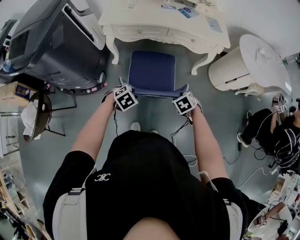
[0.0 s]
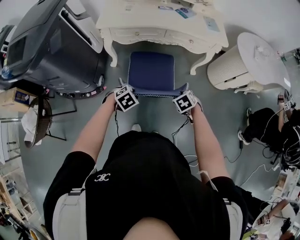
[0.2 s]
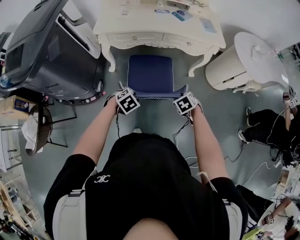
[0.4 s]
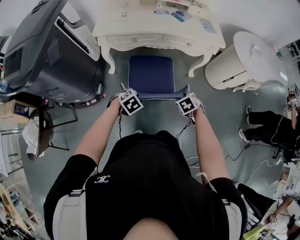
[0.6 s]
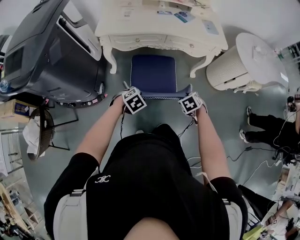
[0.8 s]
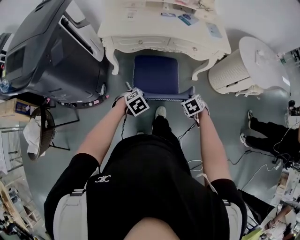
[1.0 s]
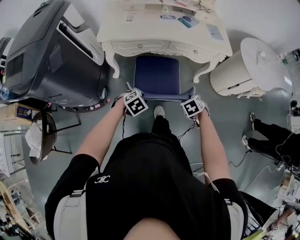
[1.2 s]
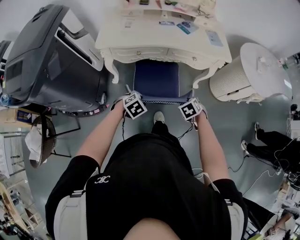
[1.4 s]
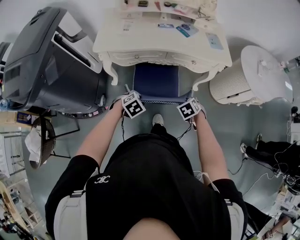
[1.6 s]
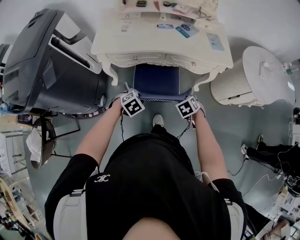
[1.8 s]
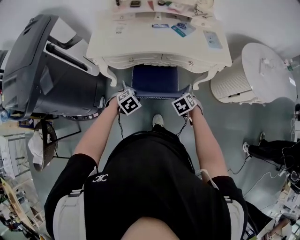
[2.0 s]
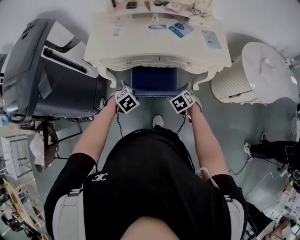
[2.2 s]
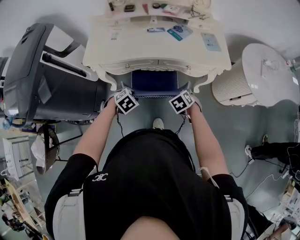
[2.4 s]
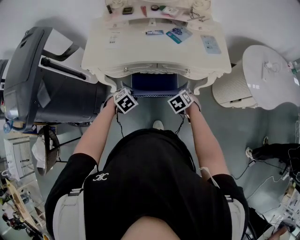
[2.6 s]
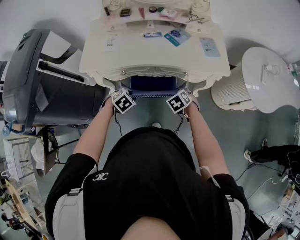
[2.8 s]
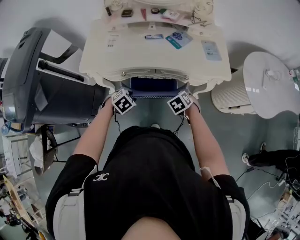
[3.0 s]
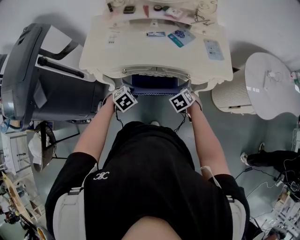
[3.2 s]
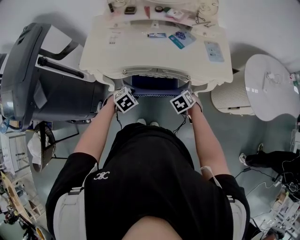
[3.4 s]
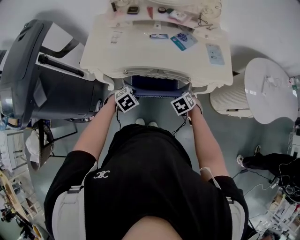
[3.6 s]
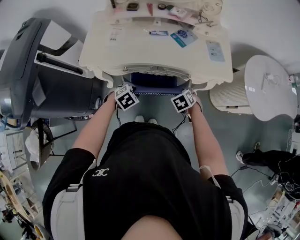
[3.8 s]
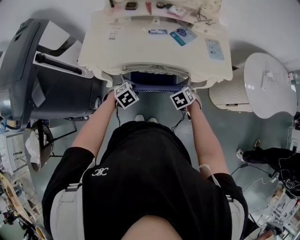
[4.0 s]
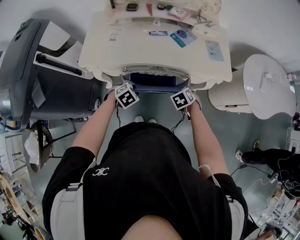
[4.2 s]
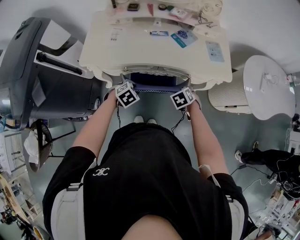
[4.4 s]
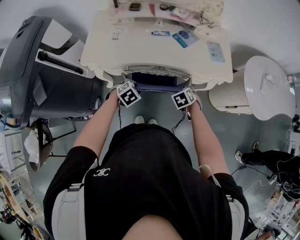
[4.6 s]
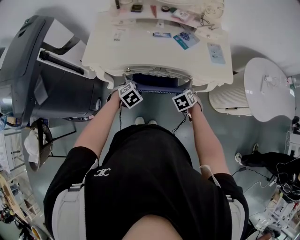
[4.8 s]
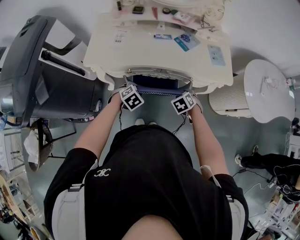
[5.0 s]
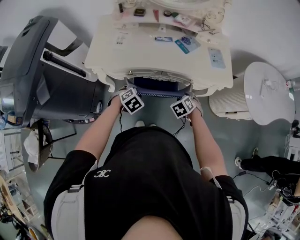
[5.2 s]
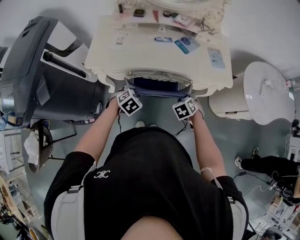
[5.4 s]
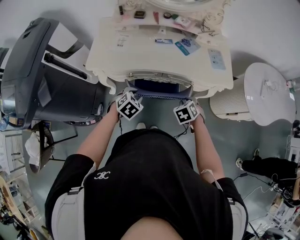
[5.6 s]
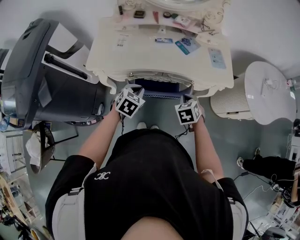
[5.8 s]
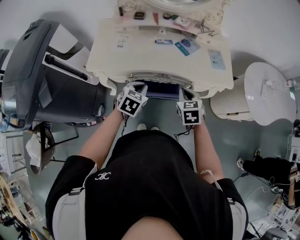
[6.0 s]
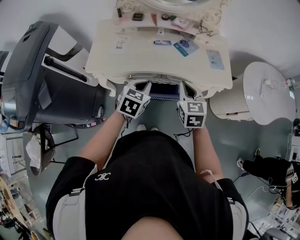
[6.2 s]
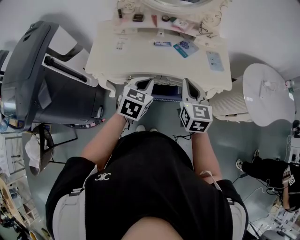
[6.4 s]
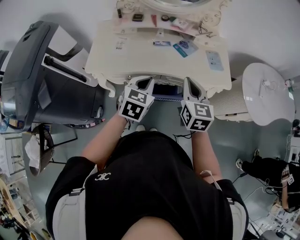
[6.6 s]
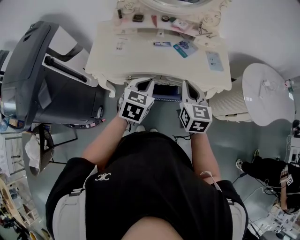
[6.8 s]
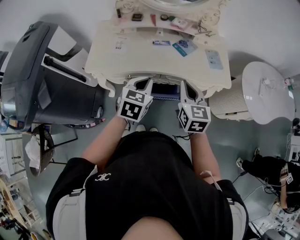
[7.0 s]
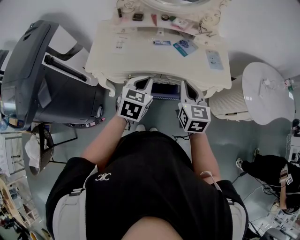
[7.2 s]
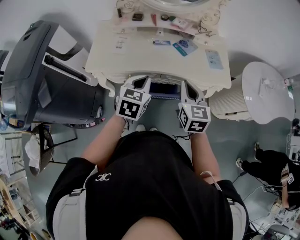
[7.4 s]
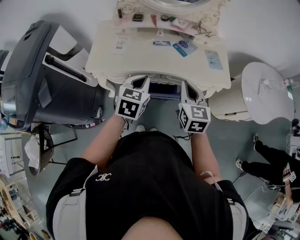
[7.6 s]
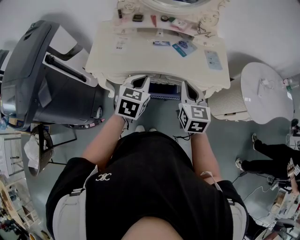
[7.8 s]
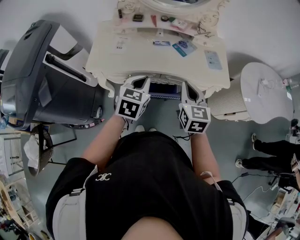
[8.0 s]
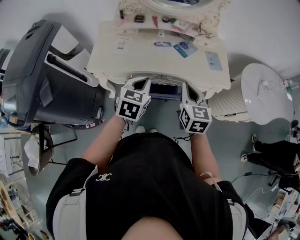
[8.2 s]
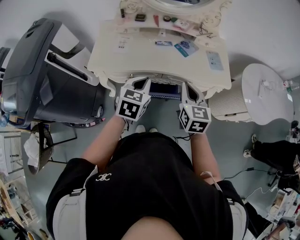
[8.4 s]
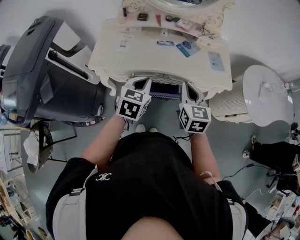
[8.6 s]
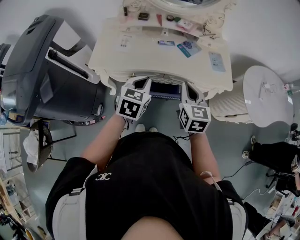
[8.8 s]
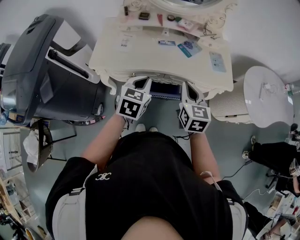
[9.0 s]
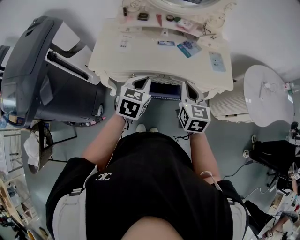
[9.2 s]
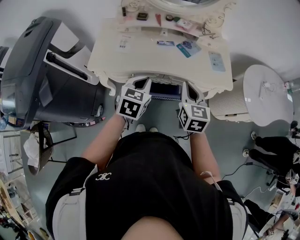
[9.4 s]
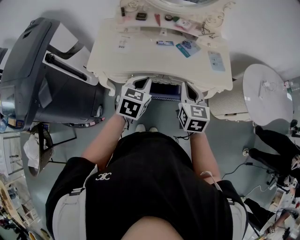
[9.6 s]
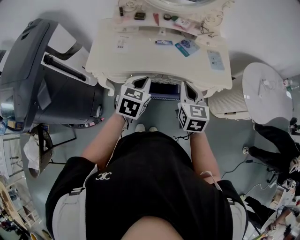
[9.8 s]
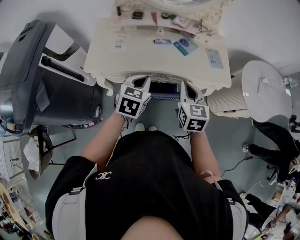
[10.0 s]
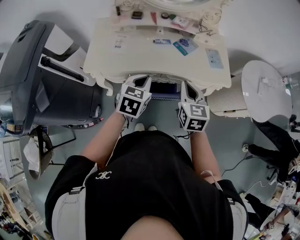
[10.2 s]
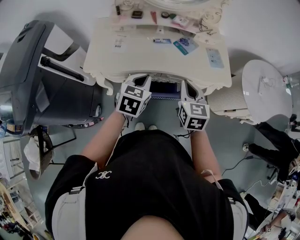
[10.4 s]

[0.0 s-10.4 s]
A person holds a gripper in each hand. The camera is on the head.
0.0 to 1.4 s: Both grippers travel together forward, some 10 cm.
1.4 to 3.0 s: Both grippers move forward, roughly 20 cm.
3.0 to 4.4 s: The grippers make only small movements.
4.4 to 6.0 s: Both grippers move upward, roughly 15 cm. The left gripper turns by roughly 30 degrees, and closes up. The right gripper rotates roughly 30 degrees, and closes up.
6.0 to 7.4 s: The two grippers go some 10 cm upward. The right gripper rotates roughly 20 degrees.
7.4 to 10.4 s: The grippers stay close to where they were, moving slightly.

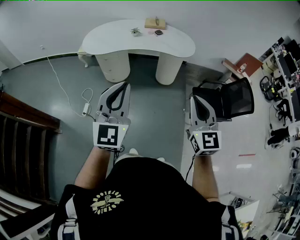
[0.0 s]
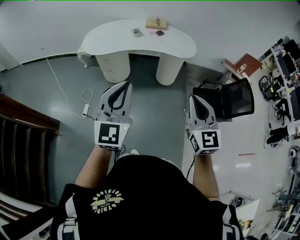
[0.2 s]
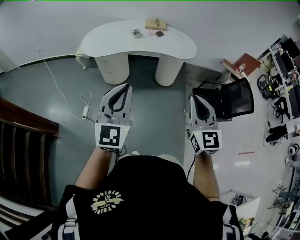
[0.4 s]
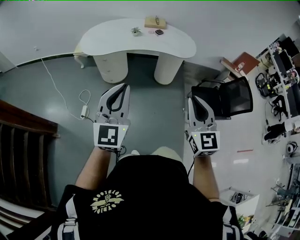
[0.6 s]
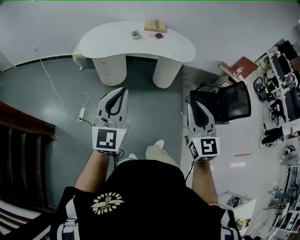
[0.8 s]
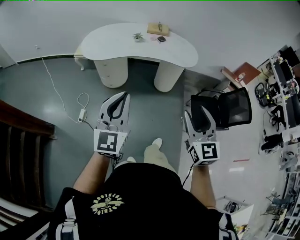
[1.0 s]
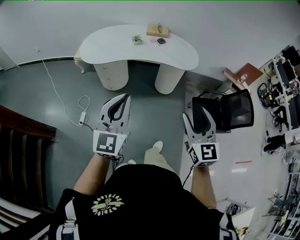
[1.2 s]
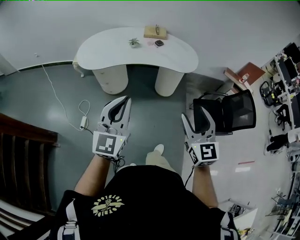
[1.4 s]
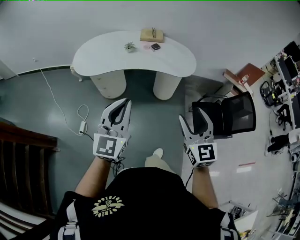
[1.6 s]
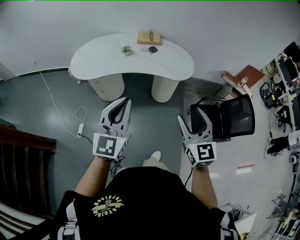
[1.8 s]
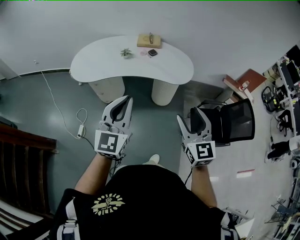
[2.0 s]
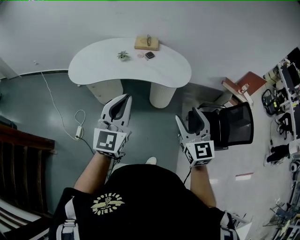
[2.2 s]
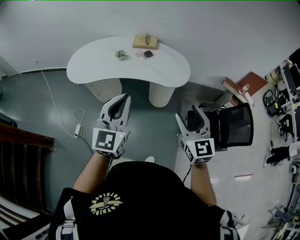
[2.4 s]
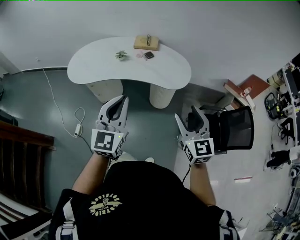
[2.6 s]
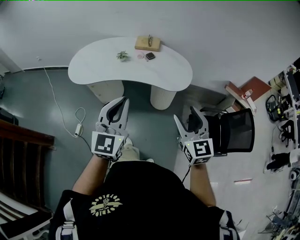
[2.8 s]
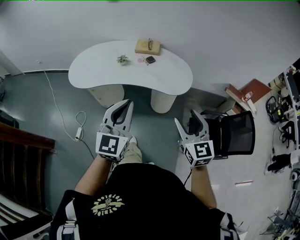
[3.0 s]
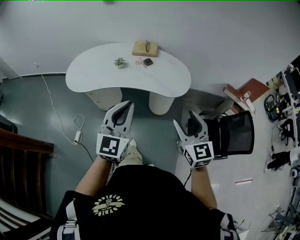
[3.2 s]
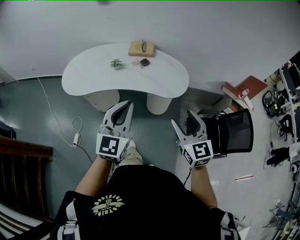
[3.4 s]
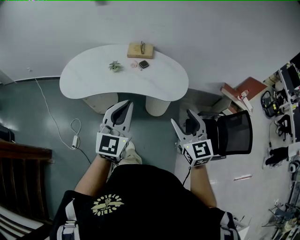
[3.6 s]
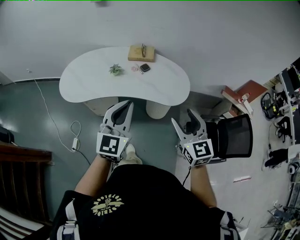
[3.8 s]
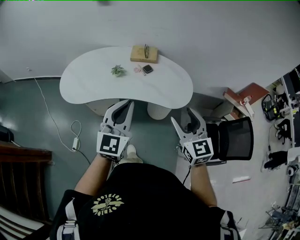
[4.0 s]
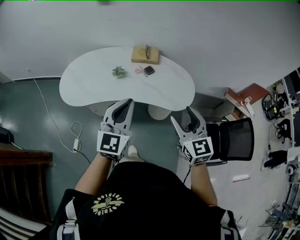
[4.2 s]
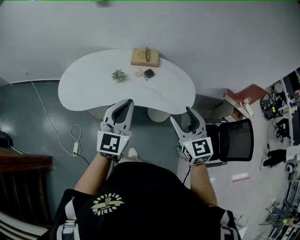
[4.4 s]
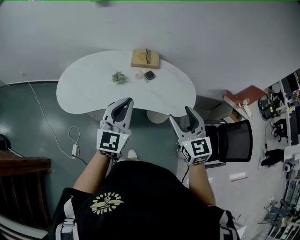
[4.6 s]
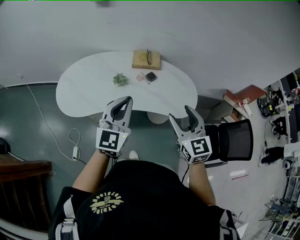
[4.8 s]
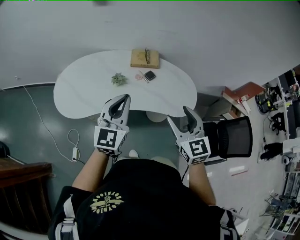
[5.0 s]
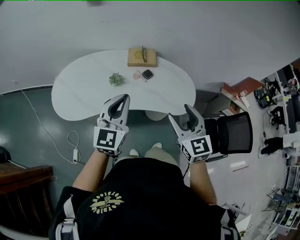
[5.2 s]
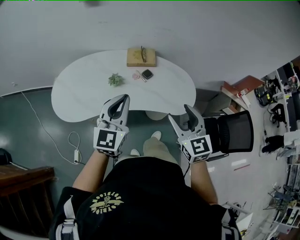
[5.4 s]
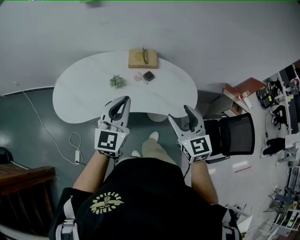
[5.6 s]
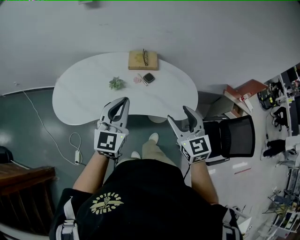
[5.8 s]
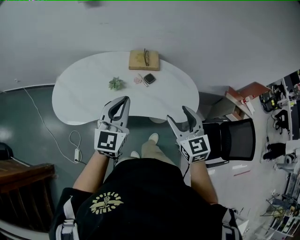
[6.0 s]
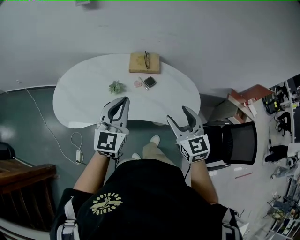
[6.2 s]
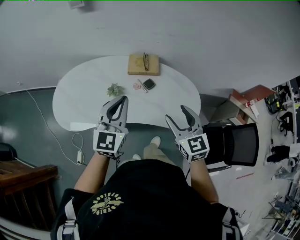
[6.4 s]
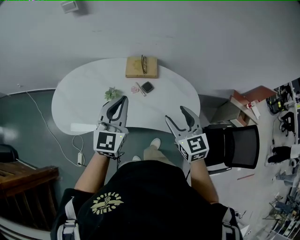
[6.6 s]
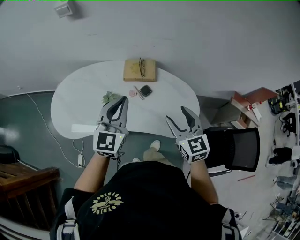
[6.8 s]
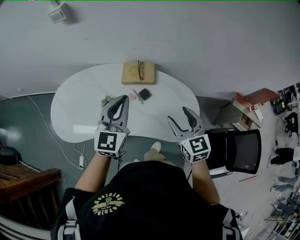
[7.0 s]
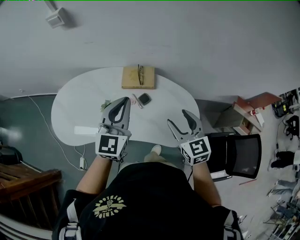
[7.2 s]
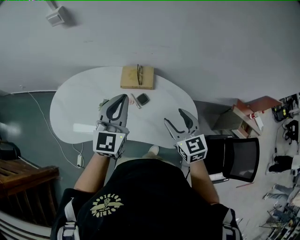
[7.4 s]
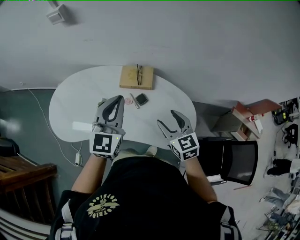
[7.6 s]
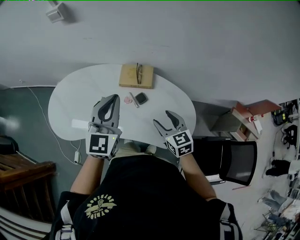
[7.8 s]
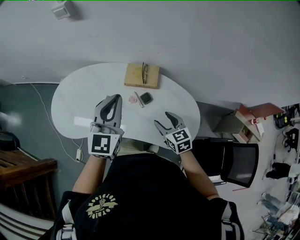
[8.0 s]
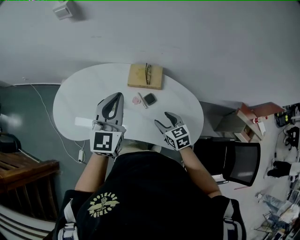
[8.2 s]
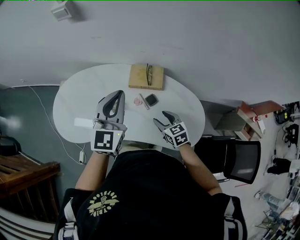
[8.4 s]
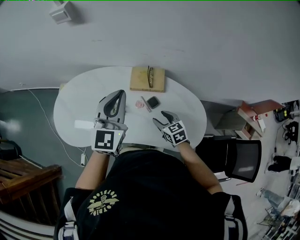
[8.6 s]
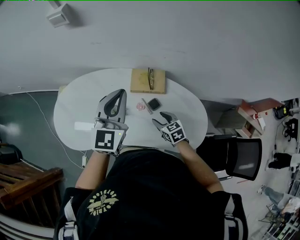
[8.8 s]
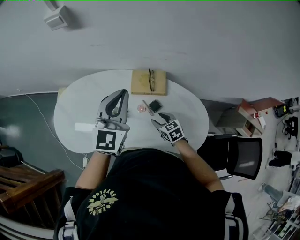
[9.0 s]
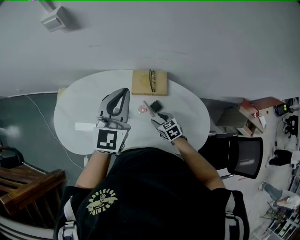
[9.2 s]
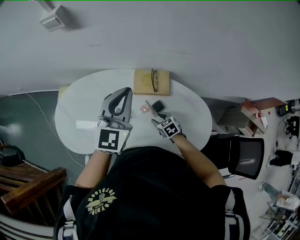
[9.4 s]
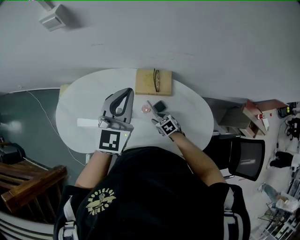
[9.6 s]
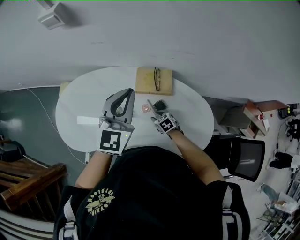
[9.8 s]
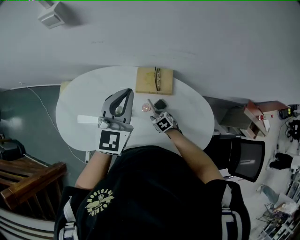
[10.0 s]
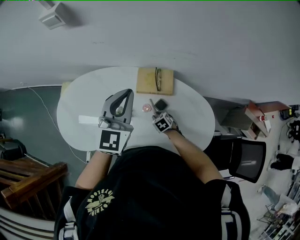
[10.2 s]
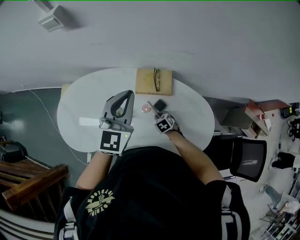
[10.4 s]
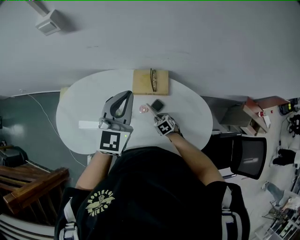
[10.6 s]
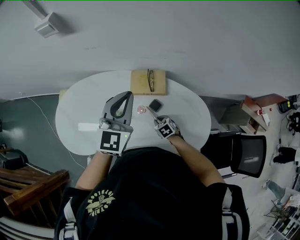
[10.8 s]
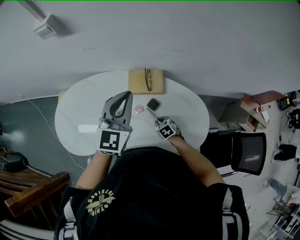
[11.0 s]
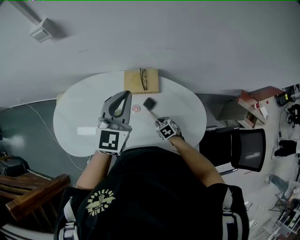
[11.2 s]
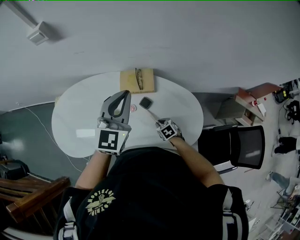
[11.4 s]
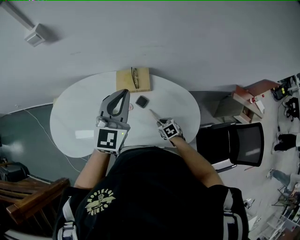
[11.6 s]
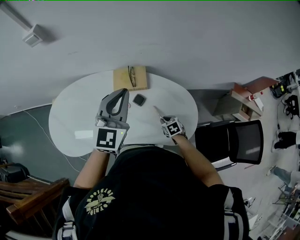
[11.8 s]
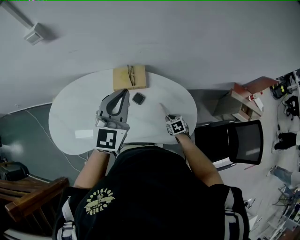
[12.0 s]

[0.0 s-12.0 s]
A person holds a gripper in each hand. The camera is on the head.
0.0 to 1.6 s: Both grippers move forward, some 20 cm. The right gripper opens up.
1.6 to 3.0 s: The two grippers go some 20 cm forward and to the right.
3.0 to 4.4 s: The left gripper heads forward, covering about 20 cm, while the right gripper moves forward and to the left, some 20 cm.
4.4 to 6.0 s: The two grippers go approximately 10 cm forward.
6.0 to 7.6 s: The right gripper is displaced forward, to the right and downward by about 20 cm. The left gripper is displaced forward and to the right by approximately 20 cm.
7.6 to 9.0 s: The right gripper shifts approximately 25 cm downward, to the left and forward, and turns by some 20 degrees, while the left gripper goes about 15 cm forward and to the left.
9.0 to 10.4 s: The right gripper shifts some 10 cm downward, changes its angle by about 20 degrees, and closes its fingers.
10.4 to 12.0 s: The right gripper travels to the right and backward by about 20 cm, and changes its angle by about 20 degrees; the left gripper travels to the right and backward by some 15 cm.

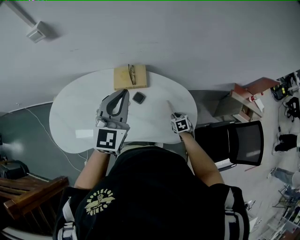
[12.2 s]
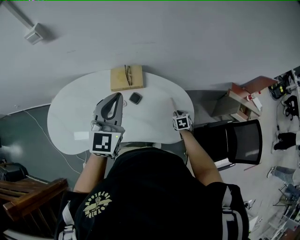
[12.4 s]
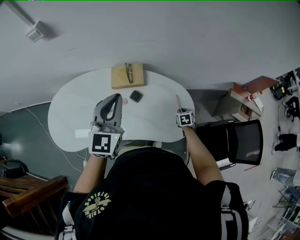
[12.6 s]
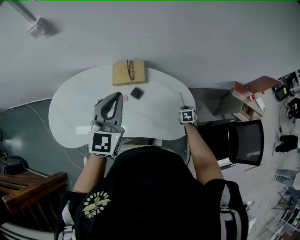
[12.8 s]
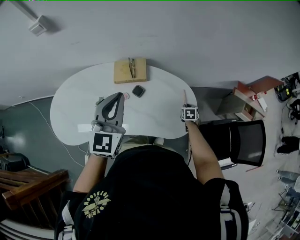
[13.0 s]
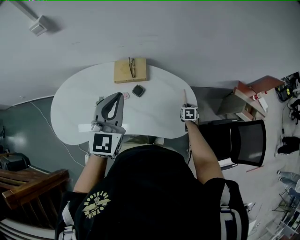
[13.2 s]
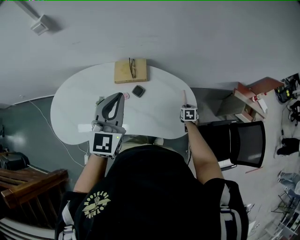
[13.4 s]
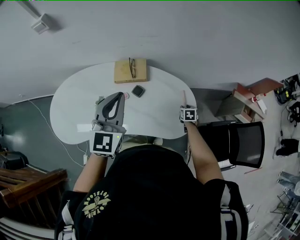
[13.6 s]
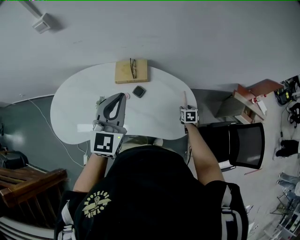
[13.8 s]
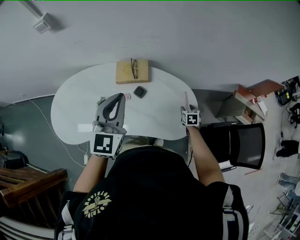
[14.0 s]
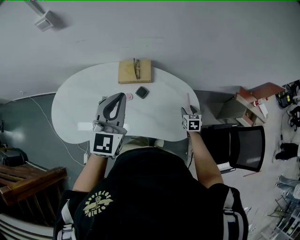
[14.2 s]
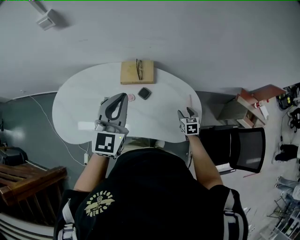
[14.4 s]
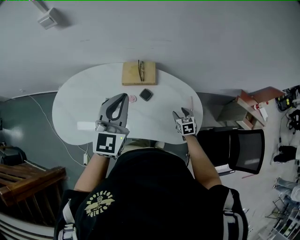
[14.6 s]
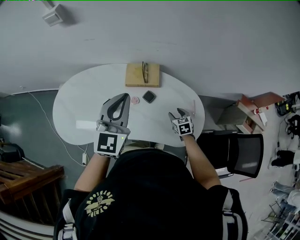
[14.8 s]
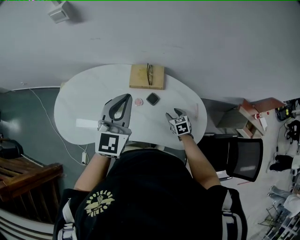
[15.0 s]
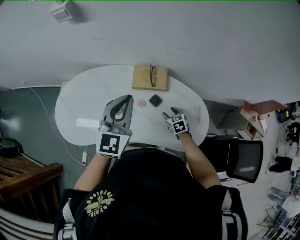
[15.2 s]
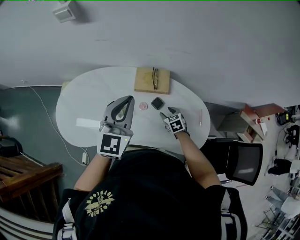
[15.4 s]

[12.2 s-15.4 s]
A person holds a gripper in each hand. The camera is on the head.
12.2 to 13.8 s: The right gripper travels to the right by about 10 cm, and opens; the left gripper is displaced backward by some 5 cm.
13.8 to 15.4 s: The right gripper goes some 25 cm to the left, and swivels some 30 degrees; the left gripper heads to the left and forward, covering about 15 cm.
